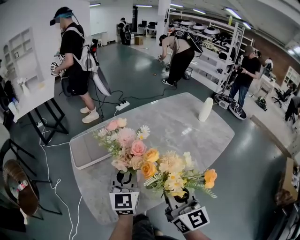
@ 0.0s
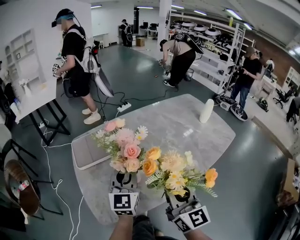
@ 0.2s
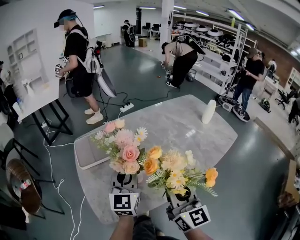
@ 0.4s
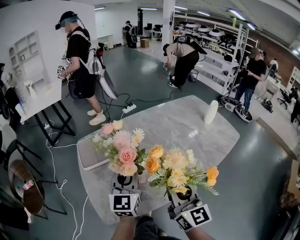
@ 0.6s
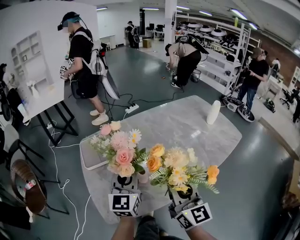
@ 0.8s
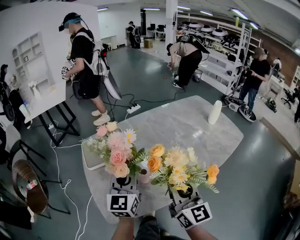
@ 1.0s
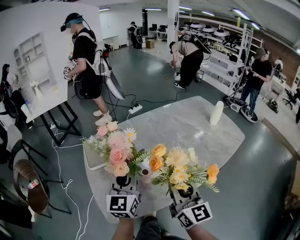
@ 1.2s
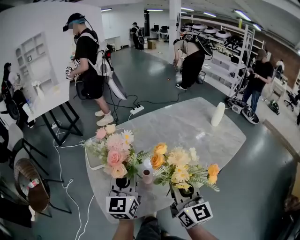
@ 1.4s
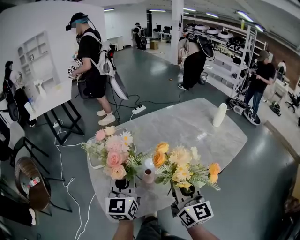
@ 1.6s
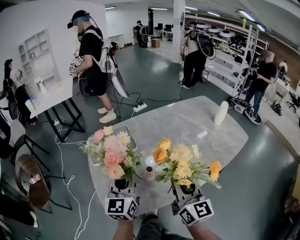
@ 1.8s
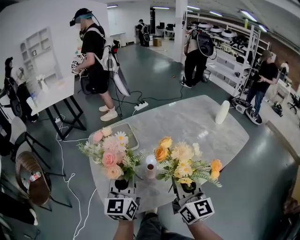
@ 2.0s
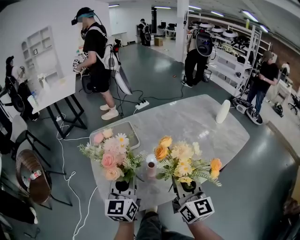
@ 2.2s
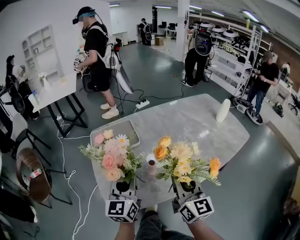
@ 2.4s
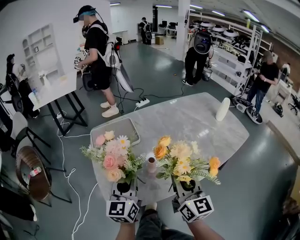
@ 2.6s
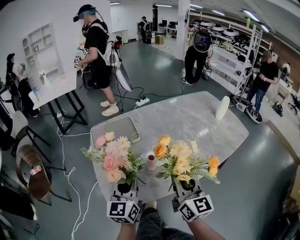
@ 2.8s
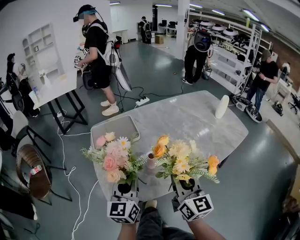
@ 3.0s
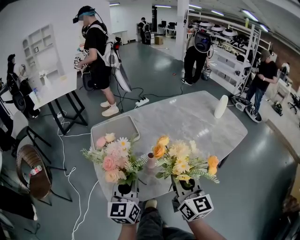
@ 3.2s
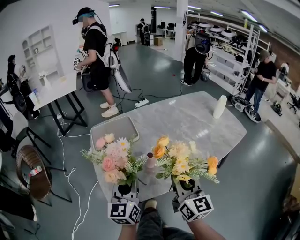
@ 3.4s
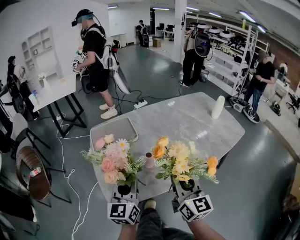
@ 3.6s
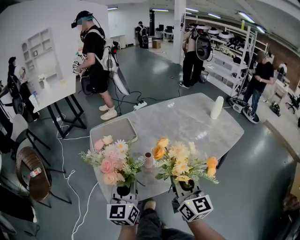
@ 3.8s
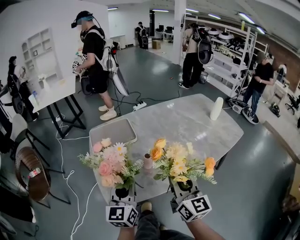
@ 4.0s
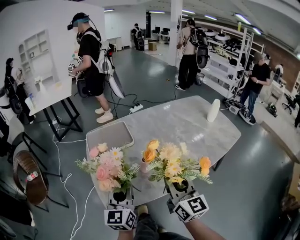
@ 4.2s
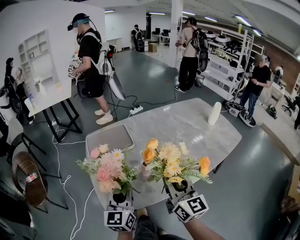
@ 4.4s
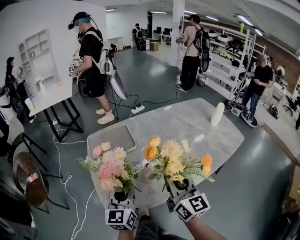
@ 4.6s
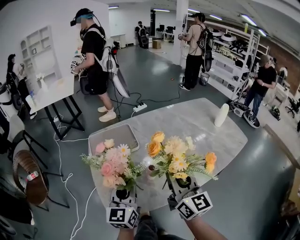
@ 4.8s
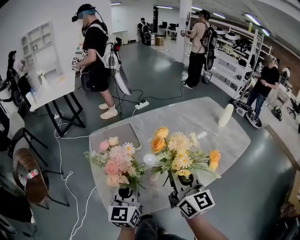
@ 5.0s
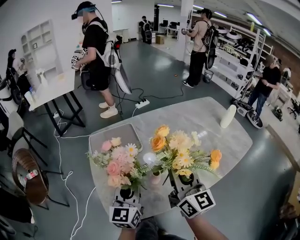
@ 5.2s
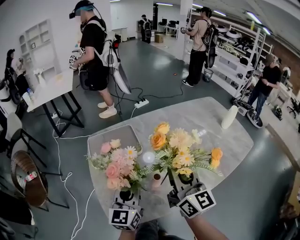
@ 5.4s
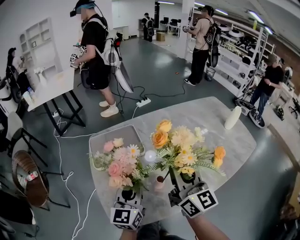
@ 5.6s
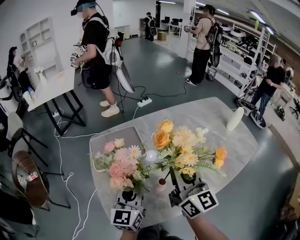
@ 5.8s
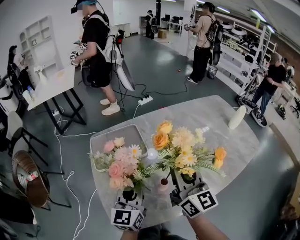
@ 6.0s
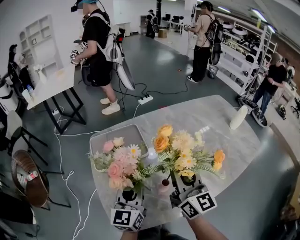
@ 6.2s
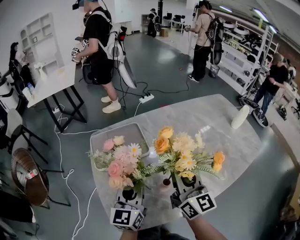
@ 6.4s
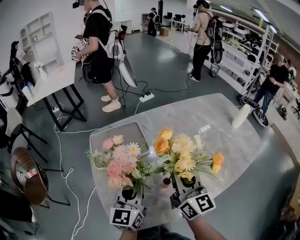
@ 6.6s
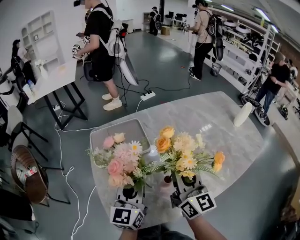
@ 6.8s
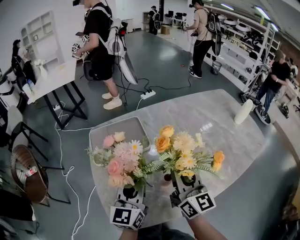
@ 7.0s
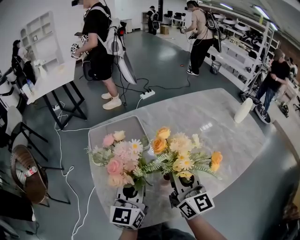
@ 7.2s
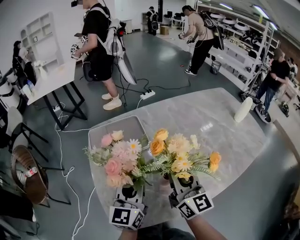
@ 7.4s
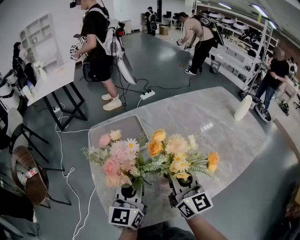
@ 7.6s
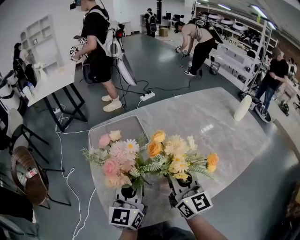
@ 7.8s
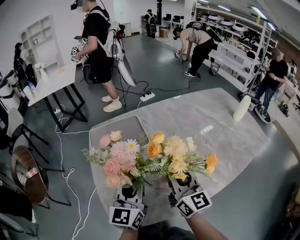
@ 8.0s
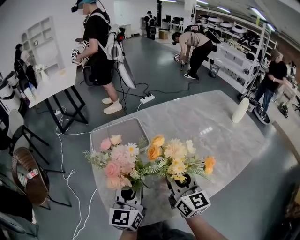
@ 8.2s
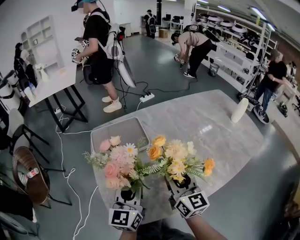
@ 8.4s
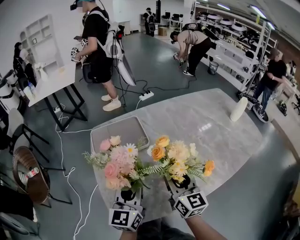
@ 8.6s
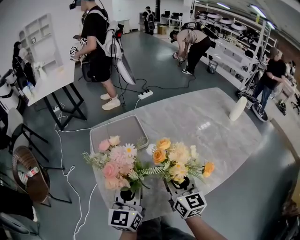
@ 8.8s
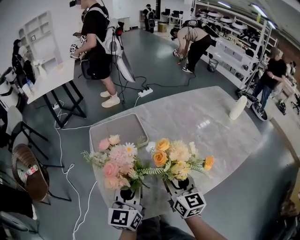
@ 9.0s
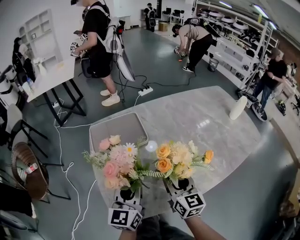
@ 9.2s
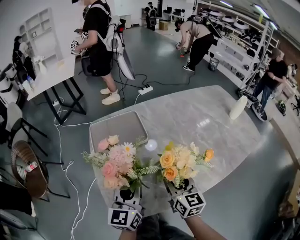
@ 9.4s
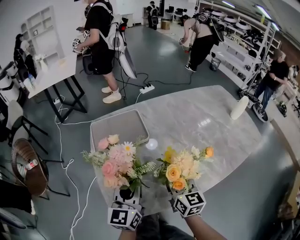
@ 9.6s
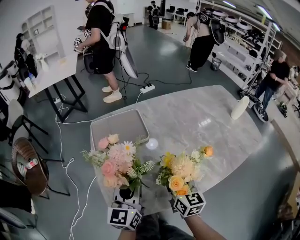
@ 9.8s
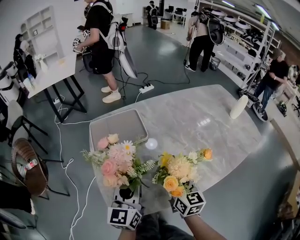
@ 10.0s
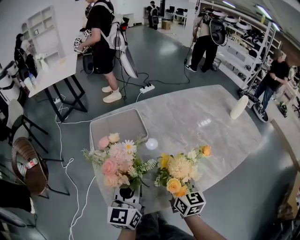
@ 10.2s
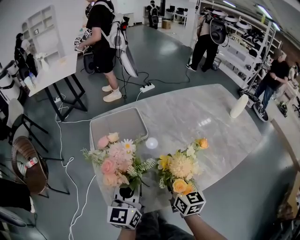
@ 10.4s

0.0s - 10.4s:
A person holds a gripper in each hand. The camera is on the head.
0.0s - 1.4s: The left gripper moves roughly 5 cm.
1.4s - 3.0s: The left gripper goes some 10 cm backward.
3.0s - 4.4s: The grippers make only small movements.
4.4s - 6.0s: Both grippers travel together forward, approximately 15 cm.
6.0s - 7.4s: The right gripper shifts roughly 10 cm downward.
7.4s - 9.0s: The right gripper shifts roughly 5 cm downward, and opens up.
9.0s - 10.4s: The grippers make only small movements.

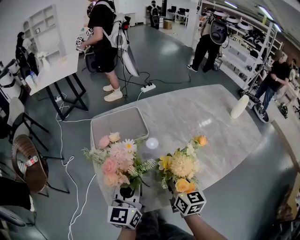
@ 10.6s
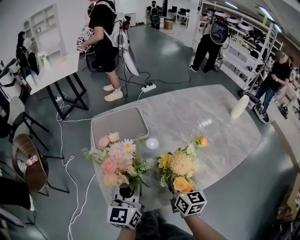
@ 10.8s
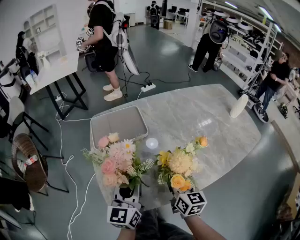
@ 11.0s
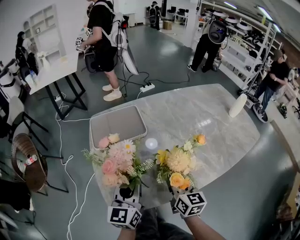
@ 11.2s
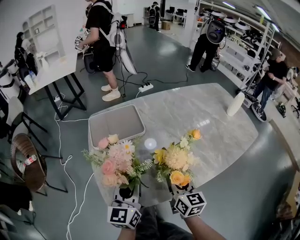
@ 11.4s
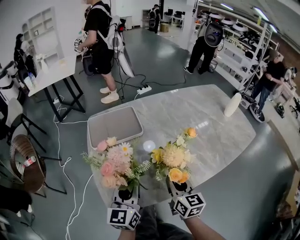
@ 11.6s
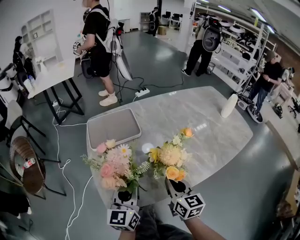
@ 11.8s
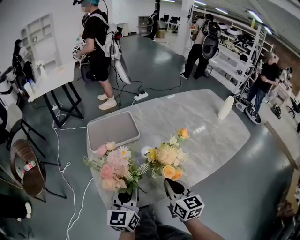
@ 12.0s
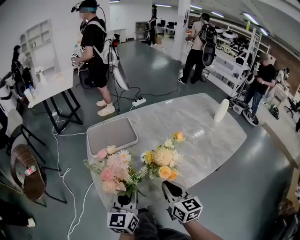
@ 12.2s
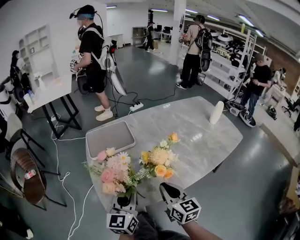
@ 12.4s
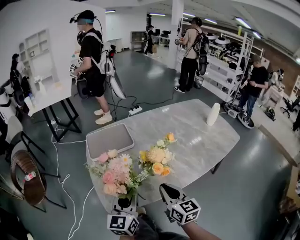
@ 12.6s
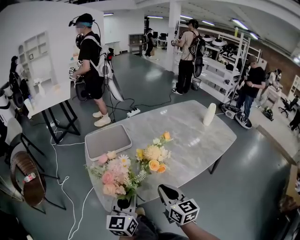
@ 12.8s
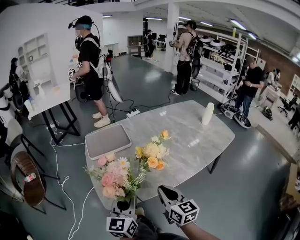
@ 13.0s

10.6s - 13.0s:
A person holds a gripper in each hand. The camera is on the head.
10.6s - 11.8s: The right gripper heads backward, covering about 5 cm, and closes its fingers.
11.8s - 13.0s: The left gripper shifts roughly 10 cm backward, while the right gripper shifts some 10 cm backward and upward.

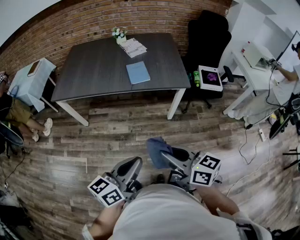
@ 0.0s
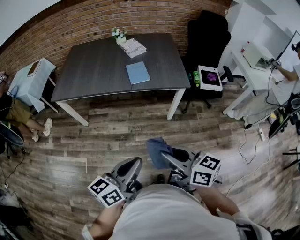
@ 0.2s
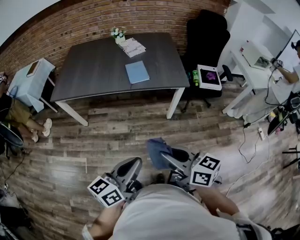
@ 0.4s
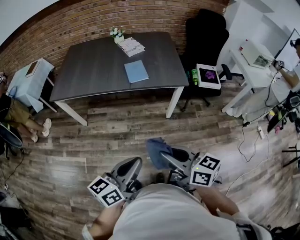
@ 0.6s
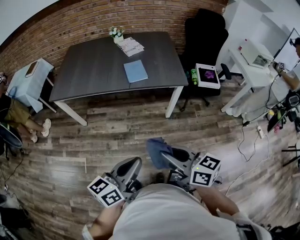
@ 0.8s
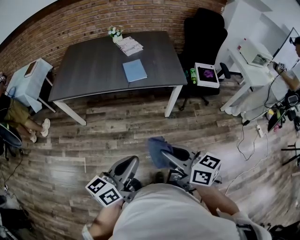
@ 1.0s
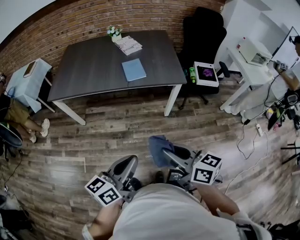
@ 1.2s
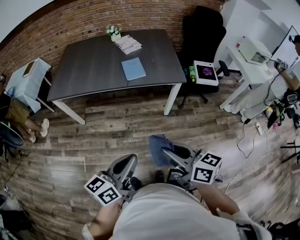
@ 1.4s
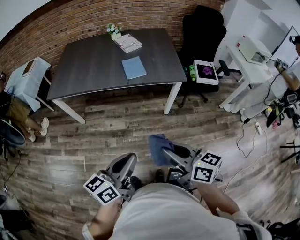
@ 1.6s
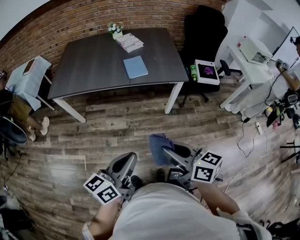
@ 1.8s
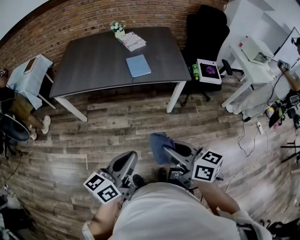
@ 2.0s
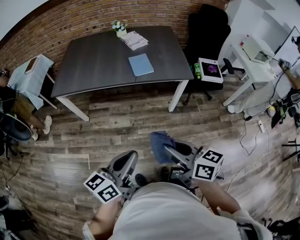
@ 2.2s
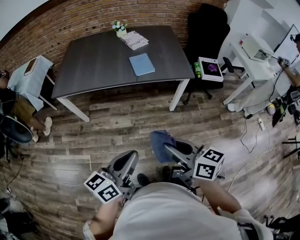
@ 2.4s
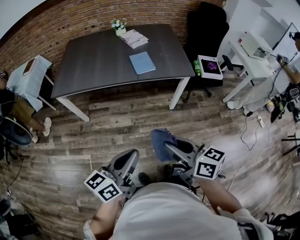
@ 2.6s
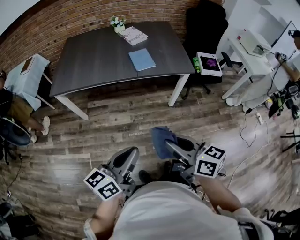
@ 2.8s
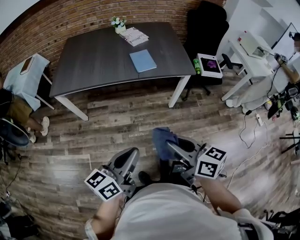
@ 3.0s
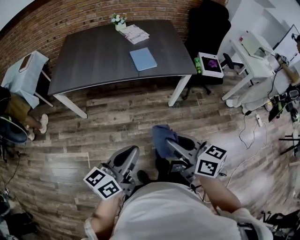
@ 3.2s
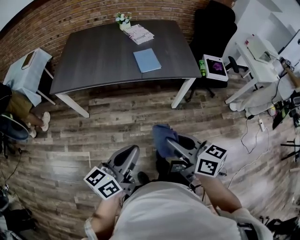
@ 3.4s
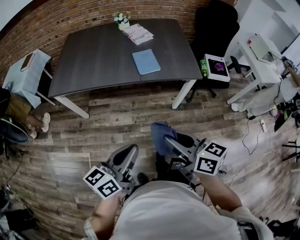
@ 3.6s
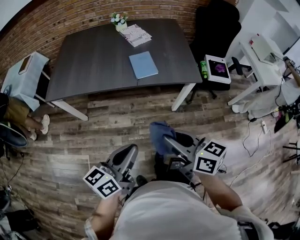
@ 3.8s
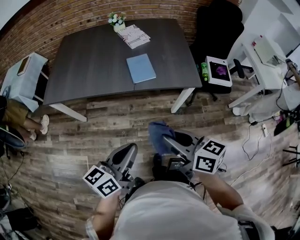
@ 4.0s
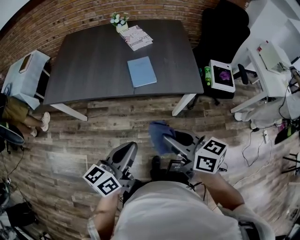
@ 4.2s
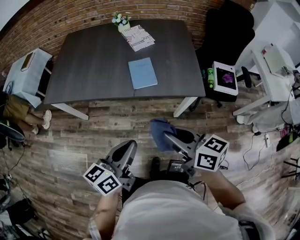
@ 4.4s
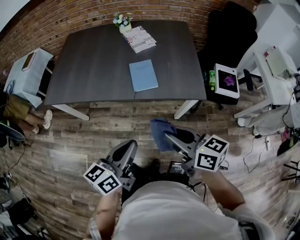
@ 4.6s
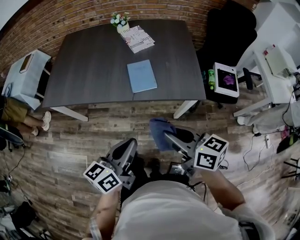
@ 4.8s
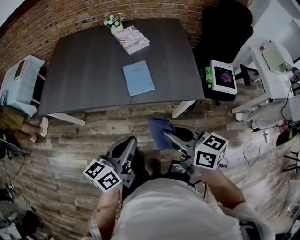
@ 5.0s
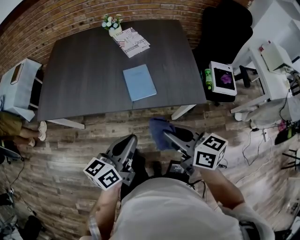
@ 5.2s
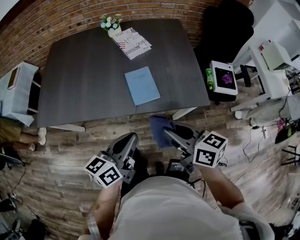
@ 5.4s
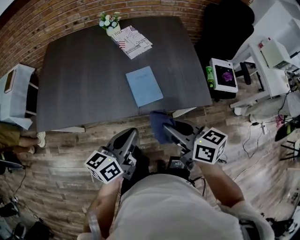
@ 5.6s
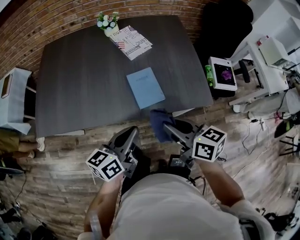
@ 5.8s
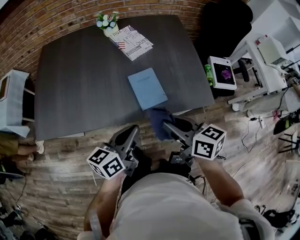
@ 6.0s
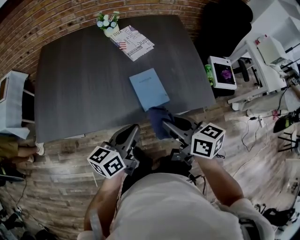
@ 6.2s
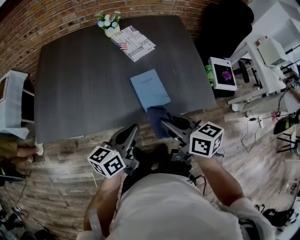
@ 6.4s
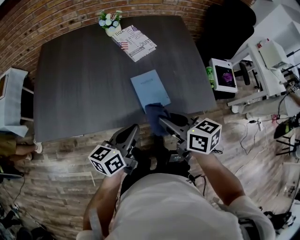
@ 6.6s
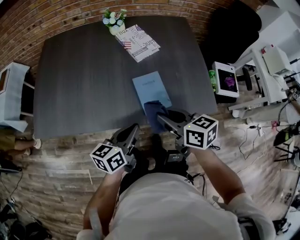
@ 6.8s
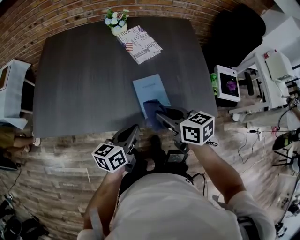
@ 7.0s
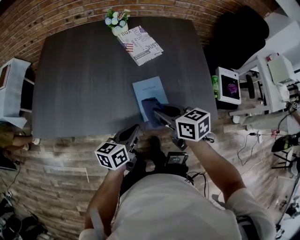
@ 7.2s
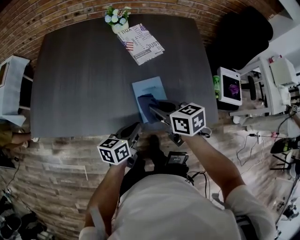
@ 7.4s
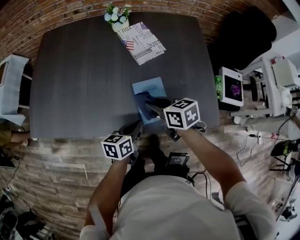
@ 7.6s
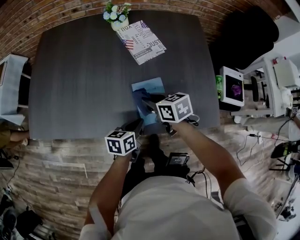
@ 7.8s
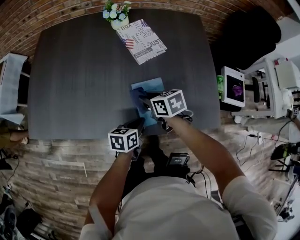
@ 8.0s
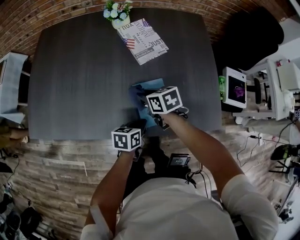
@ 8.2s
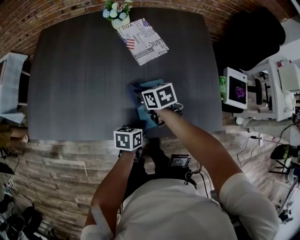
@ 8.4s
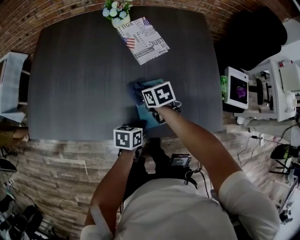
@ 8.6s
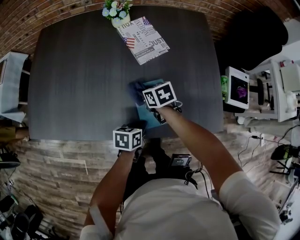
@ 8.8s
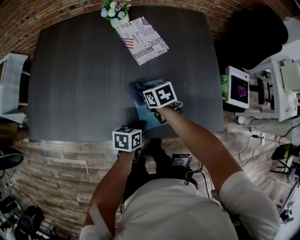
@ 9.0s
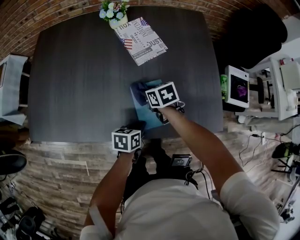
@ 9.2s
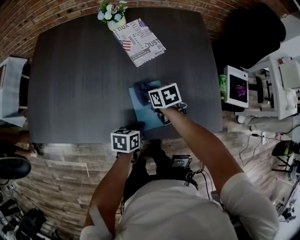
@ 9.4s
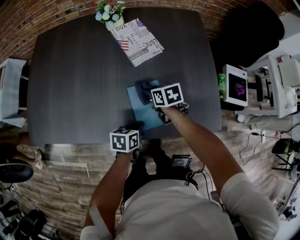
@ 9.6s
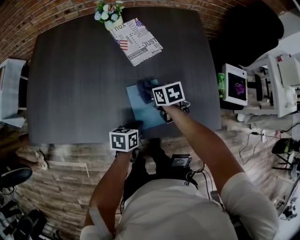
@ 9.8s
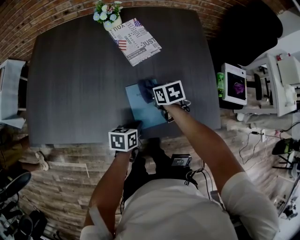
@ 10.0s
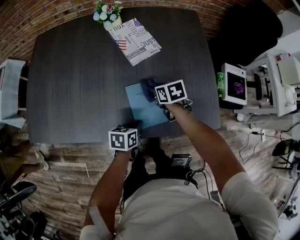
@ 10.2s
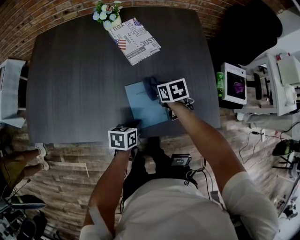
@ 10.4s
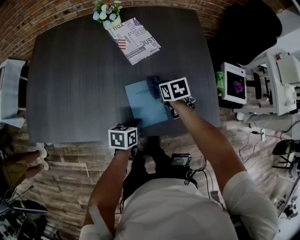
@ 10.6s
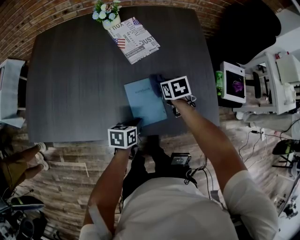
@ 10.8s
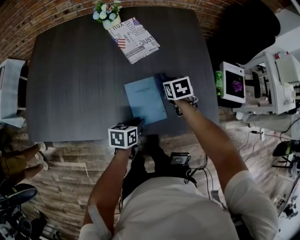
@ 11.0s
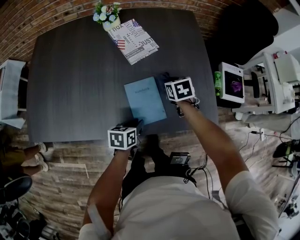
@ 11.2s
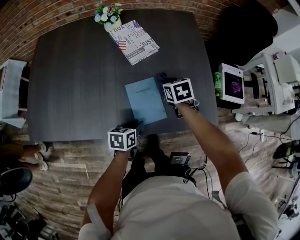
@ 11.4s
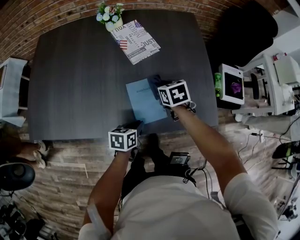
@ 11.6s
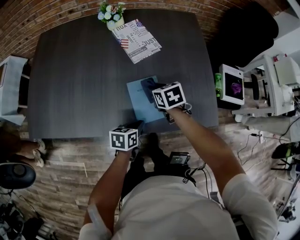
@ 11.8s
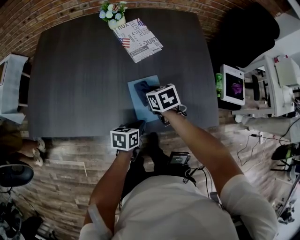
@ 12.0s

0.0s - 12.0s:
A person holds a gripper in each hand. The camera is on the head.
0.0s - 1.6s: The grippers make only small movements.
1.6s - 3.0s: The two grippers go about 10 cm to the left.
3.0s - 4.4s: The grippers both shift forward and to the right by approximately 25 cm.
4.4s - 6.0s: The two grippers go about 20 cm forward.
6.0s - 7.6s: The left gripper shifts some 20 cm downward and forward; the right gripper heads forward and downward, covering some 20 cm.
7.6s - 9.0s: The right gripper goes some 15 cm downward and forward; the left gripper travels downward by about 5 cm.
9.0s - 10.4s: The right gripper heads to the right, covering approximately 10 cm.
10.4s - 12.0s: The right gripper is displaced to the left and backward by about 10 cm.
